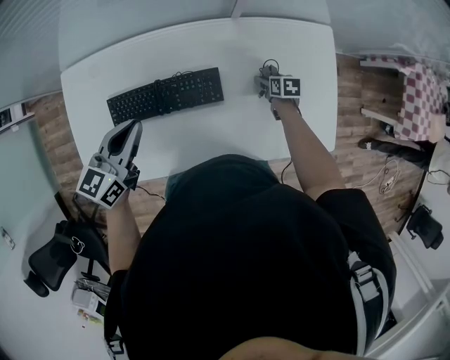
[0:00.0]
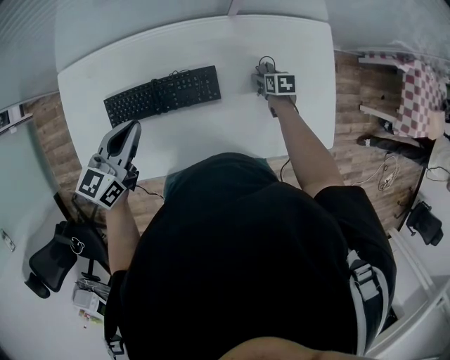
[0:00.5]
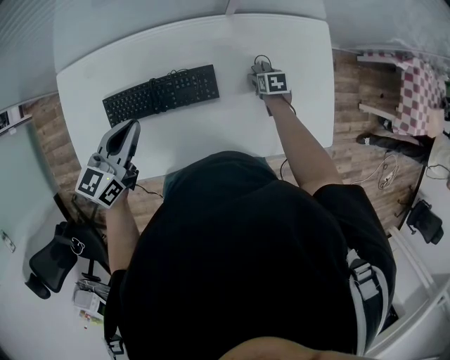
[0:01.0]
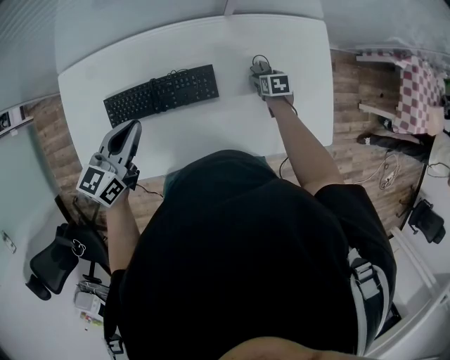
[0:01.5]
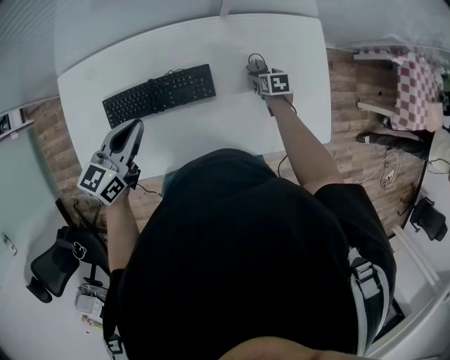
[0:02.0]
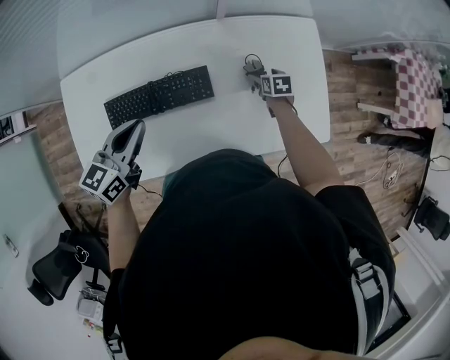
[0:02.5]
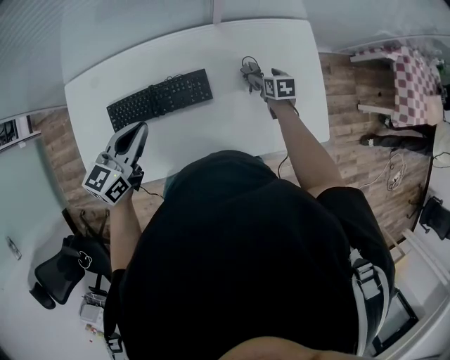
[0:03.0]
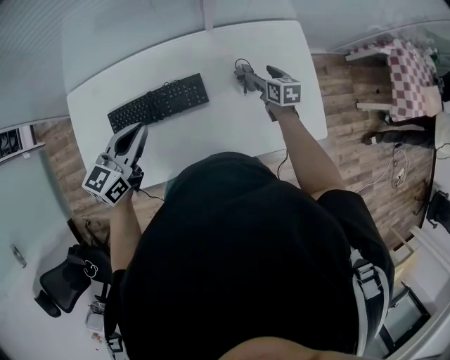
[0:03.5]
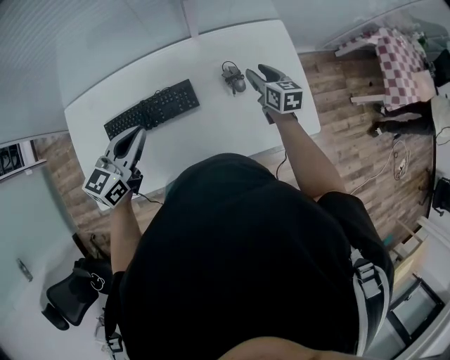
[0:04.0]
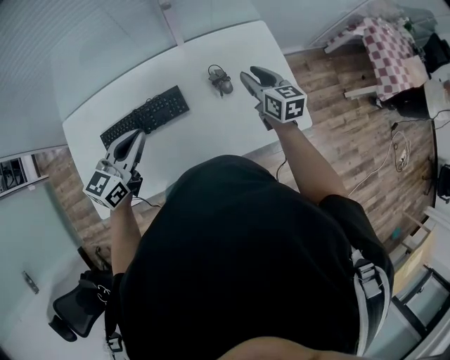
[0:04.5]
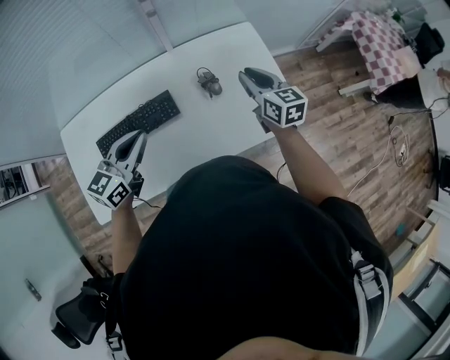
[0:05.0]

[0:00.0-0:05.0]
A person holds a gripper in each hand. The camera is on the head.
0:00.0 to 0:02.5: The right gripper changes place by about 5 cm; the left gripper moves about 5 cm.
0:02.5 to 0:05.0: The left gripper goes about 15 cm to the right. The right gripper is displaced upward by about 30 cm, tips its fingers upward by some 40 degrees, and closes up.

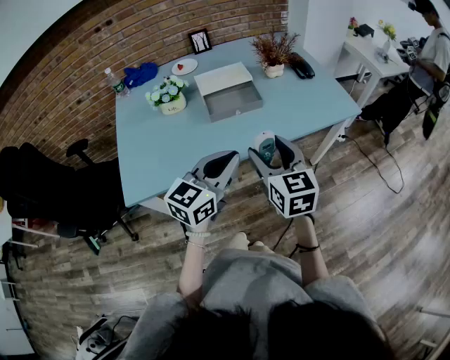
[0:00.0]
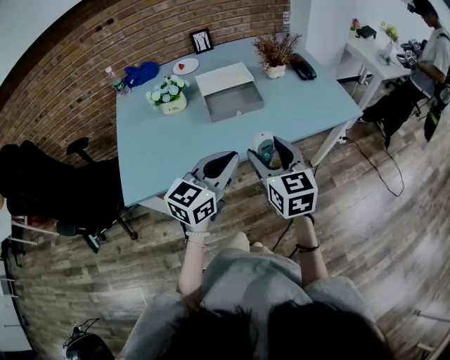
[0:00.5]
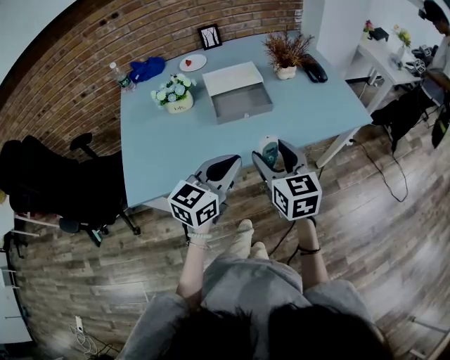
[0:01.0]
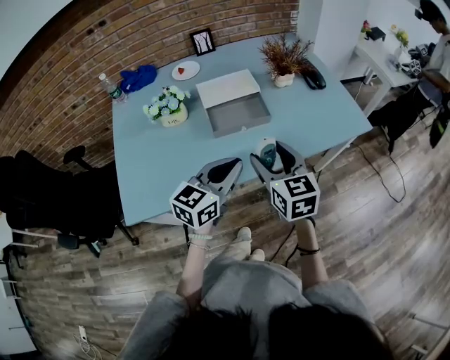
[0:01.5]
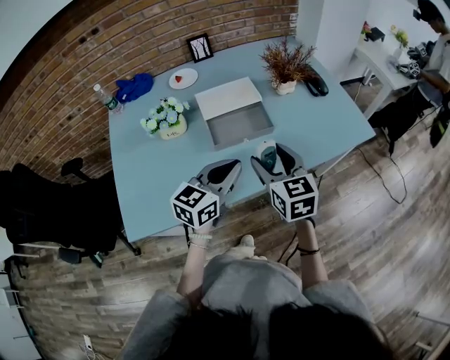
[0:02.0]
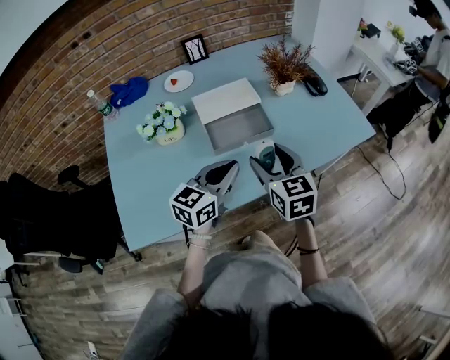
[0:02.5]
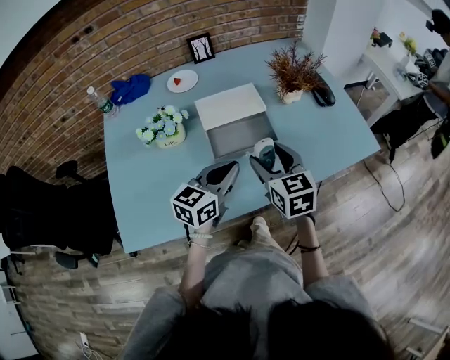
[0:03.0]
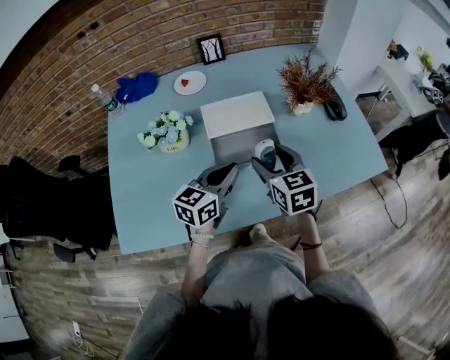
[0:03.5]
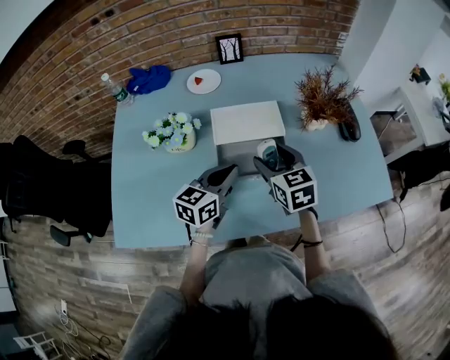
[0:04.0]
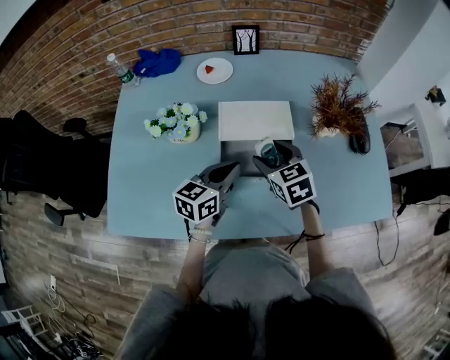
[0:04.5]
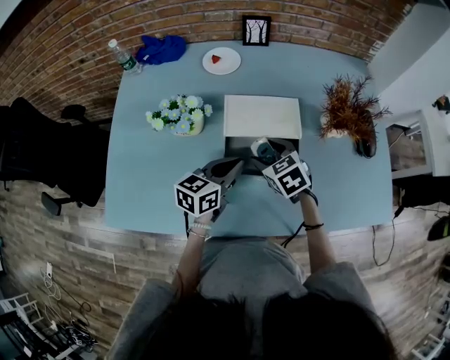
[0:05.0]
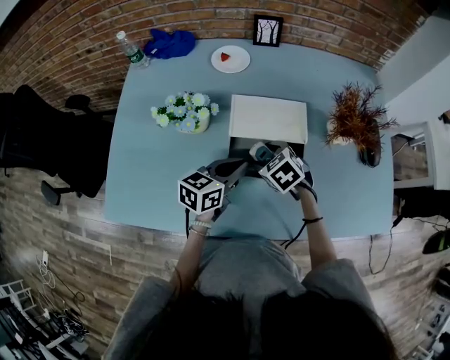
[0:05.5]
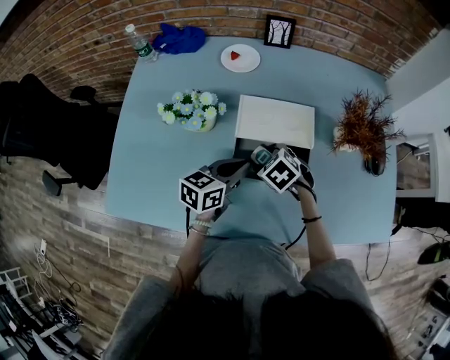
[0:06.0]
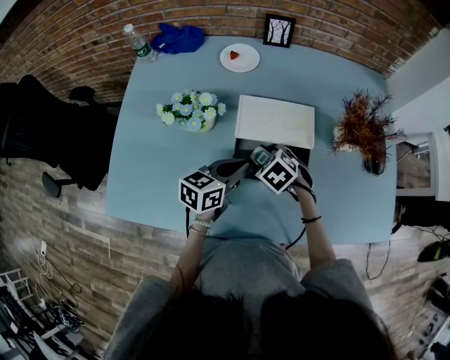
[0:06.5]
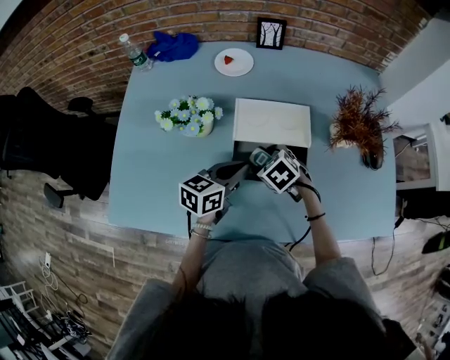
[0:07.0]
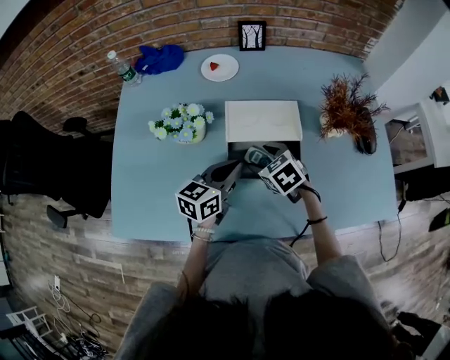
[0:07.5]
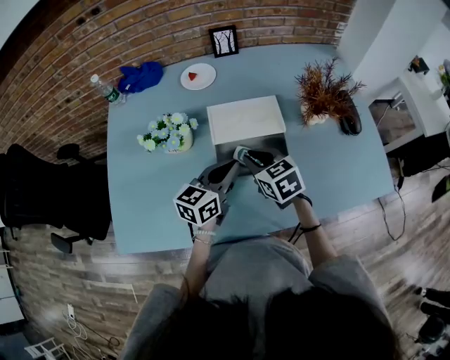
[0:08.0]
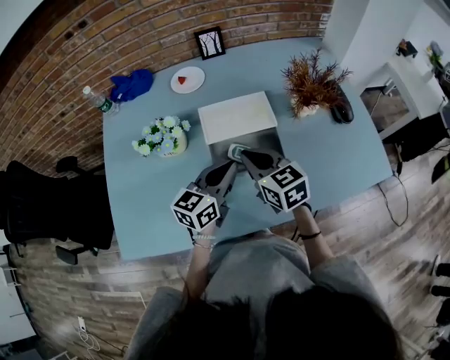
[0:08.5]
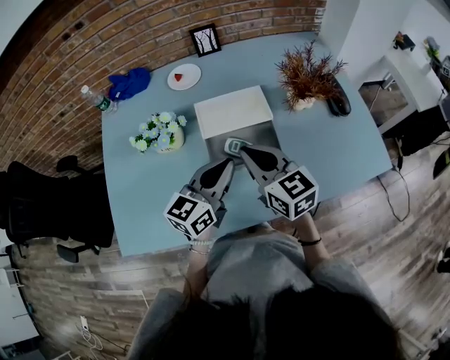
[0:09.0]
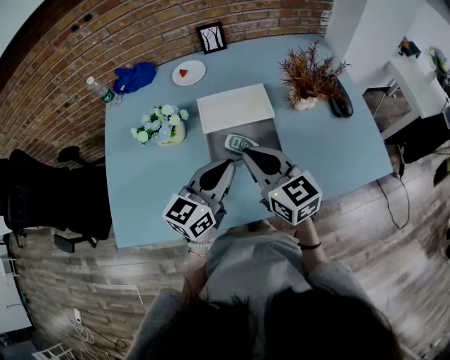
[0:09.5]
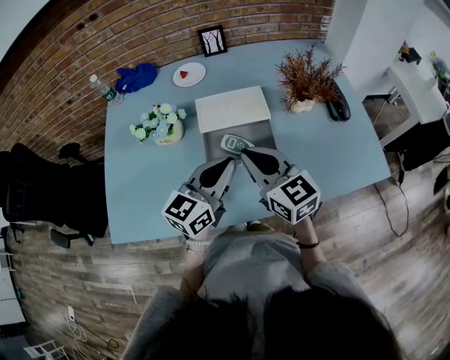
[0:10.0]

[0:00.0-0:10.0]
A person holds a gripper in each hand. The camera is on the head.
0:00.0 to 0:02.0: The grippers both shift forward by some 15 cm.
0:02.0 to 0:04.0: The right gripper moves forward, about 20 cm. Meanwhile the left gripper moves forward and downward, approximately 15 cm.
0:04.0 to 0:06.0: The right gripper travels downward and to the left by roughly 15 cm, and angles its fingers downward, by roughly 40 degrees. Meanwhile the left gripper shifts by approximately 5 cm.
0:06.0 to 0:08.0: The right gripper travels upward by about 10 cm, changes its angle by about 40 degrees, and closes its fingers.
0:08.0 to 0:10.0: The right gripper shifts some 15 cm upward and backward, and turns by approximately 30 degrees. The left gripper heads backward and upward, covering roughly 10 cm.

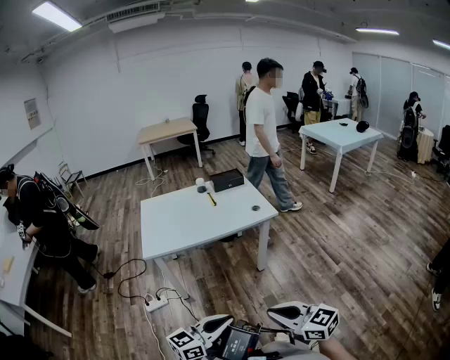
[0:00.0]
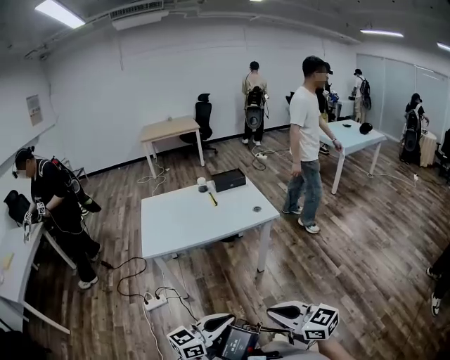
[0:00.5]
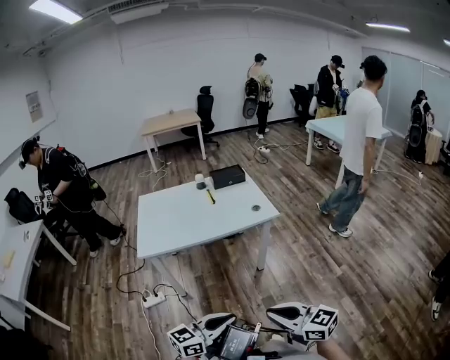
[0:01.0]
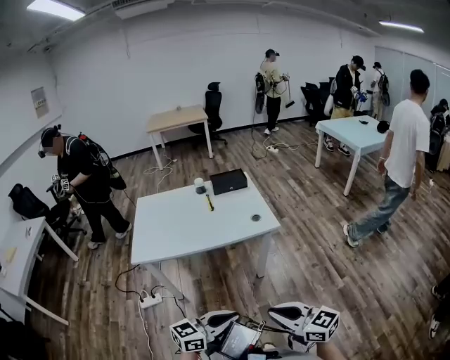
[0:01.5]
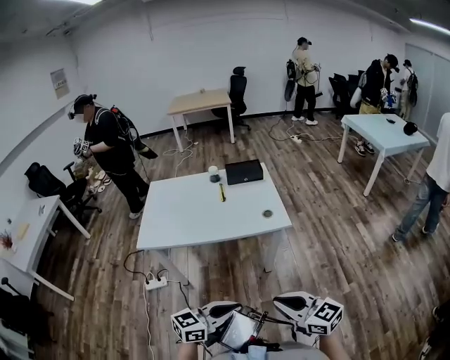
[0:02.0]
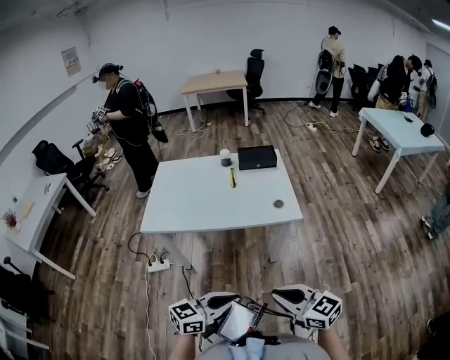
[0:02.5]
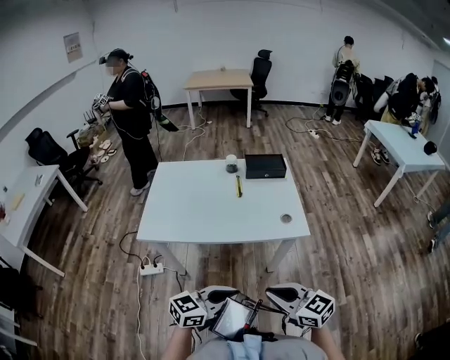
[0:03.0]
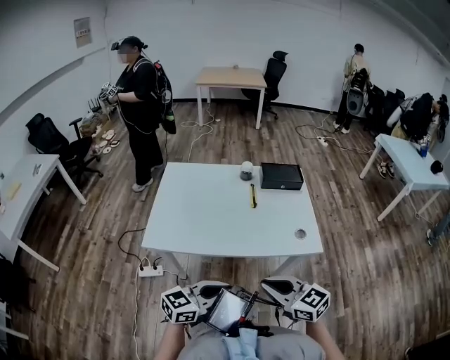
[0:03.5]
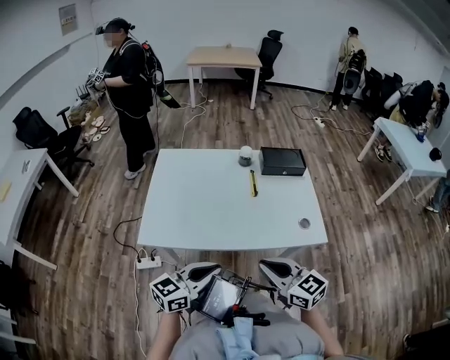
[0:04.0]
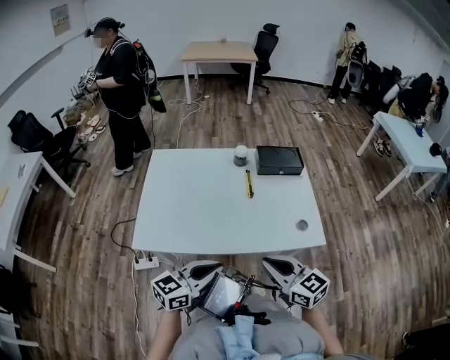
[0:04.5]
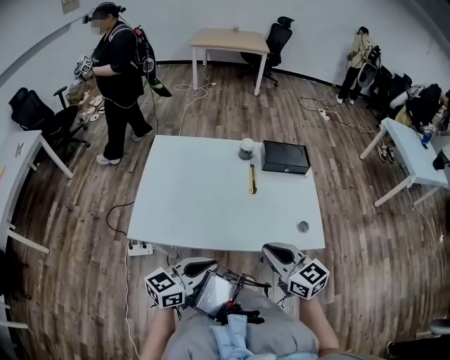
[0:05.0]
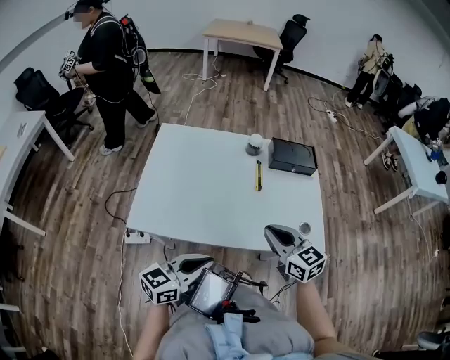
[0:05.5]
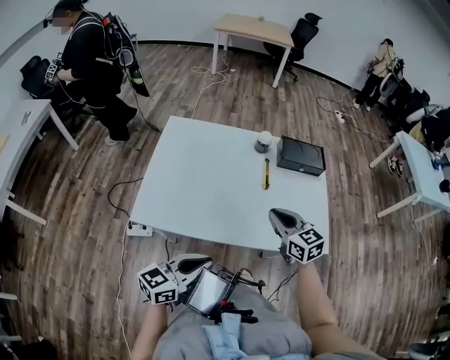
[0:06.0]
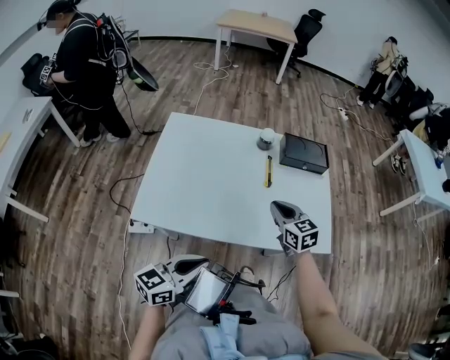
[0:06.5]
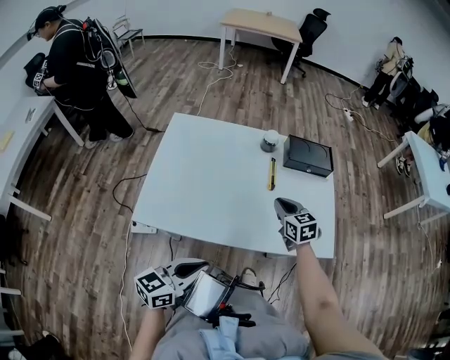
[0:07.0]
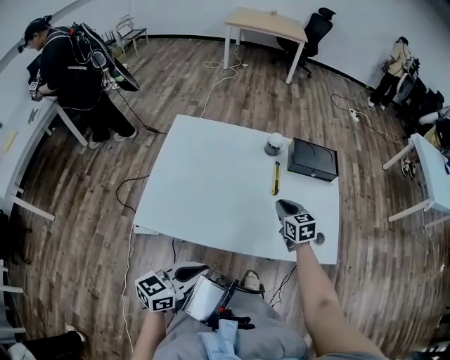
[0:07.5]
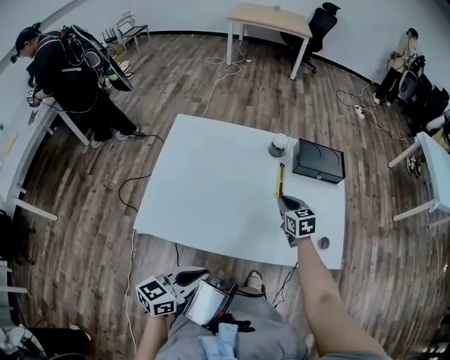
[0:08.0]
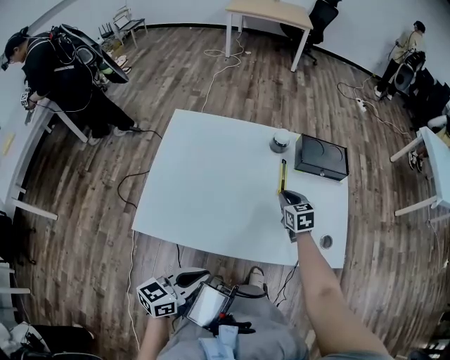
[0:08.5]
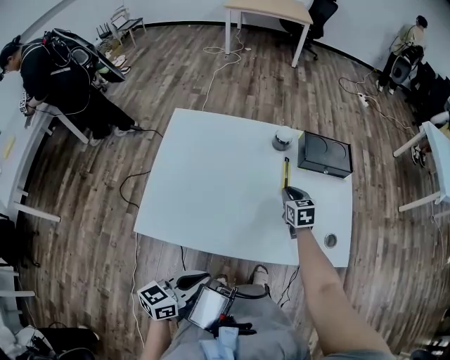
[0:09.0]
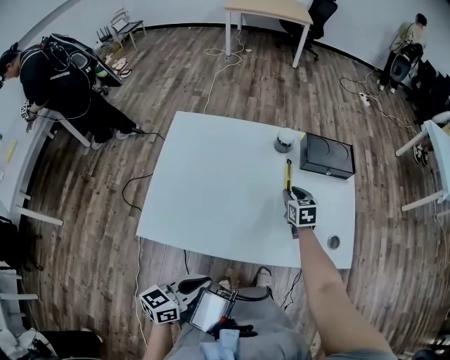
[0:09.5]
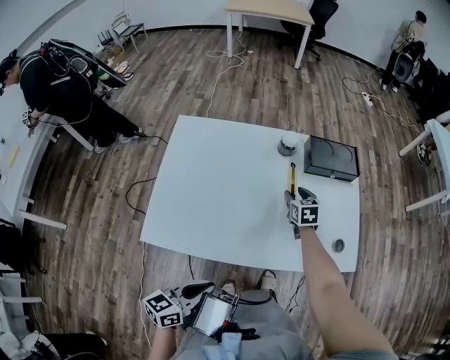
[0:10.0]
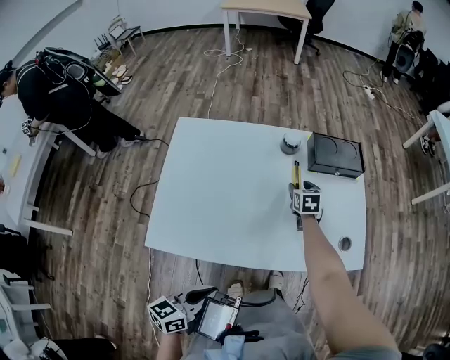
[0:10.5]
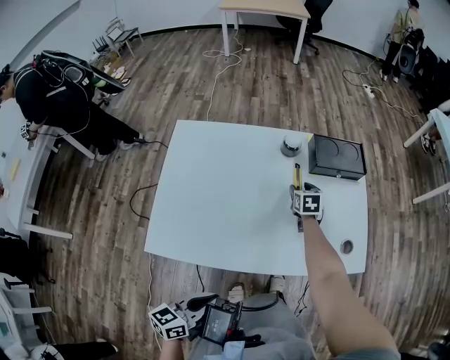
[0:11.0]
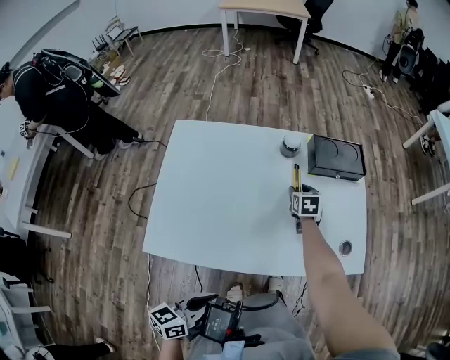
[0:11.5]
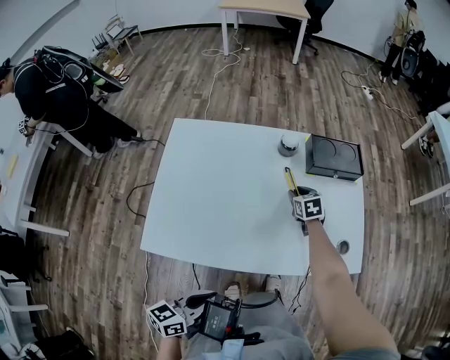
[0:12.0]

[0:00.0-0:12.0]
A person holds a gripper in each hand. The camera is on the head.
0:00.0 to 0:02.0: Both grippers move forward and to the right, roughly 25 cm.
0:02.0 to 0:04.0: Both grippers move forward and to the left, about 35 cm.
0:04.0 to 0:06.0: The right gripper is displaced forward by some 20 cm.
0:06.0 to 0:08.0: The left gripper changes place by roughly 5 cm; the right gripper travels forward and downward by about 20 cm.
0:08.0 to 0:10.0: The right gripper moves forward and downward, some 10 cm, and opens its fingers.
0:10.0 to 0:12.0: The grippers make only small movements.
